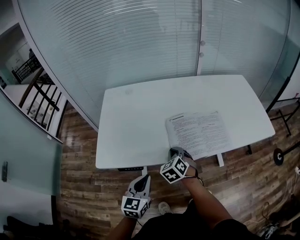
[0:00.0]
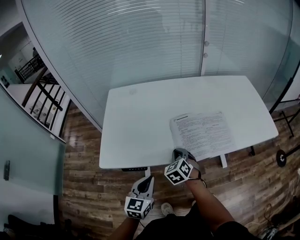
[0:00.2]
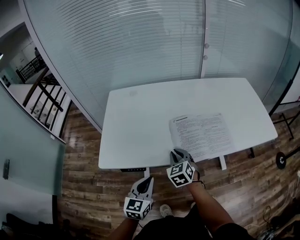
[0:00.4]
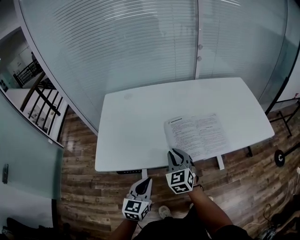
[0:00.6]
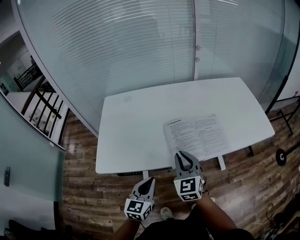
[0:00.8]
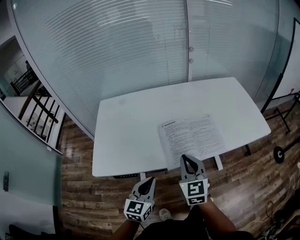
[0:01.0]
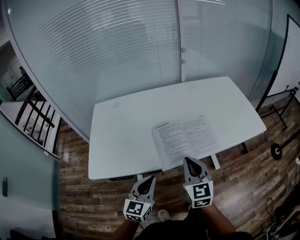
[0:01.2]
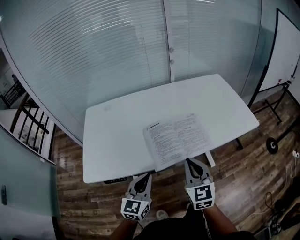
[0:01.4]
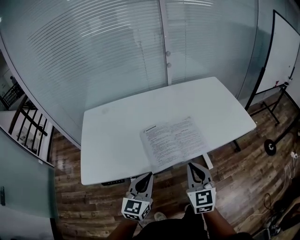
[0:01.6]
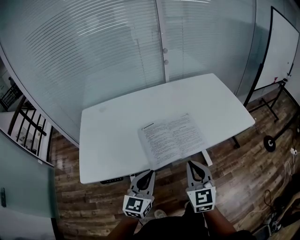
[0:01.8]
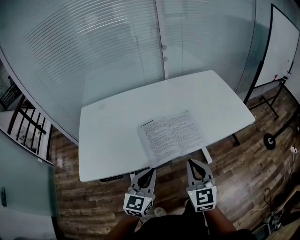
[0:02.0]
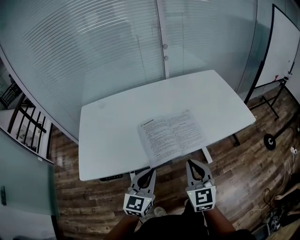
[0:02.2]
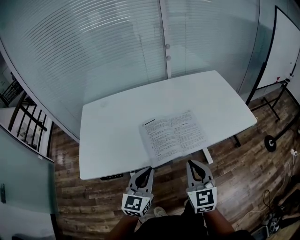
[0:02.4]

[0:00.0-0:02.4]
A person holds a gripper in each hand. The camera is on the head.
0:00.0 to 0:01.2: The right gripper is displaced upward, to the right and backward by some 20 cm, and angles its fingers upward, by some 30 degrees. The left gripper moves to the right, some 10 cm.
0:01.2 to 0:02.4: The left gripper changes place by about 5 cm, while the right gripper goes roughly 5 cm to the right.

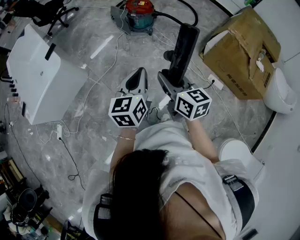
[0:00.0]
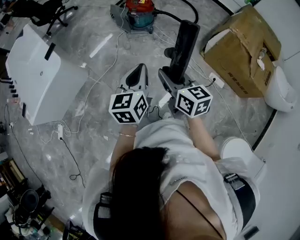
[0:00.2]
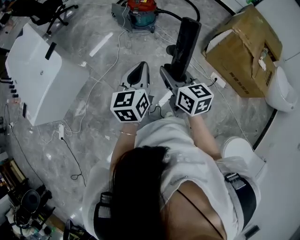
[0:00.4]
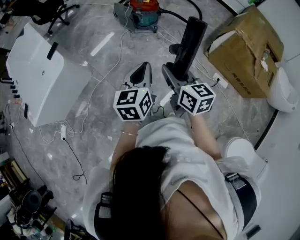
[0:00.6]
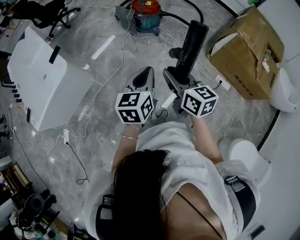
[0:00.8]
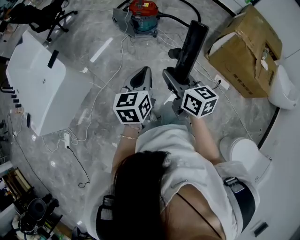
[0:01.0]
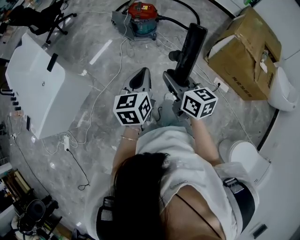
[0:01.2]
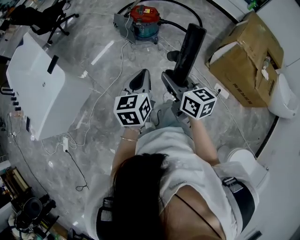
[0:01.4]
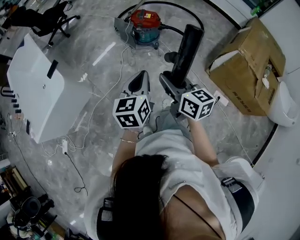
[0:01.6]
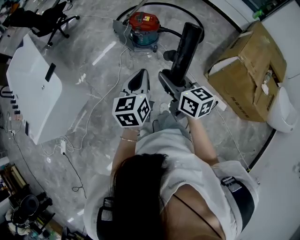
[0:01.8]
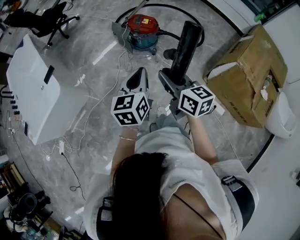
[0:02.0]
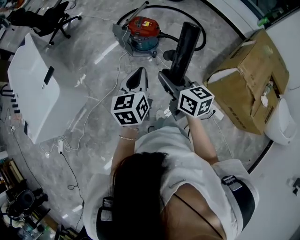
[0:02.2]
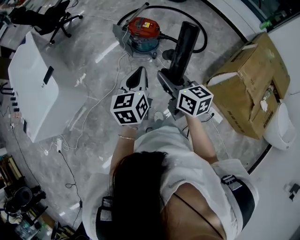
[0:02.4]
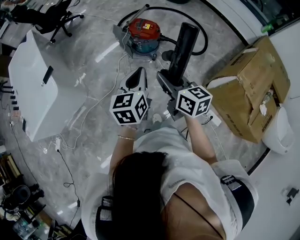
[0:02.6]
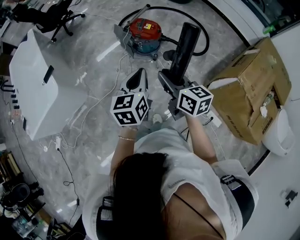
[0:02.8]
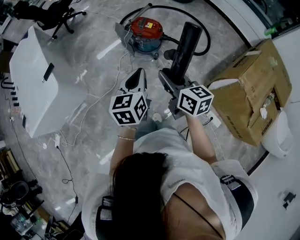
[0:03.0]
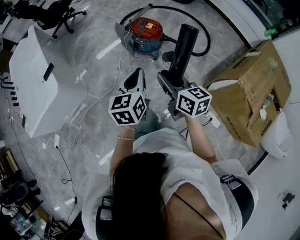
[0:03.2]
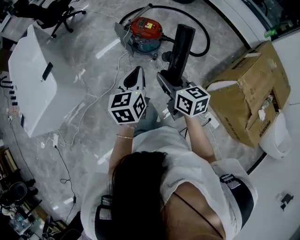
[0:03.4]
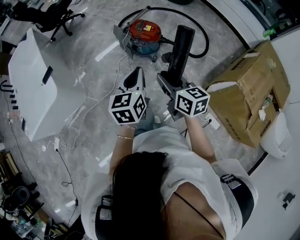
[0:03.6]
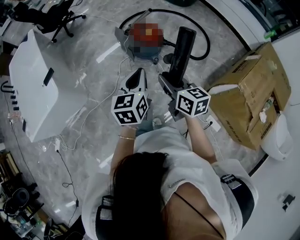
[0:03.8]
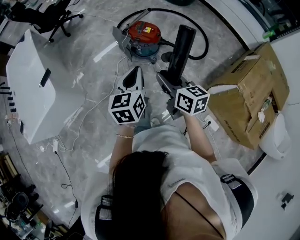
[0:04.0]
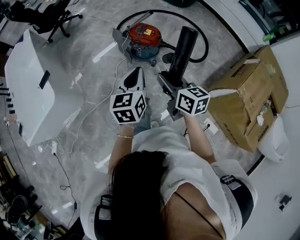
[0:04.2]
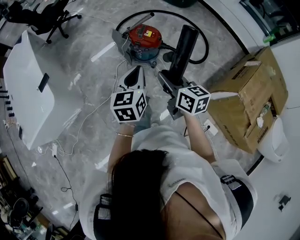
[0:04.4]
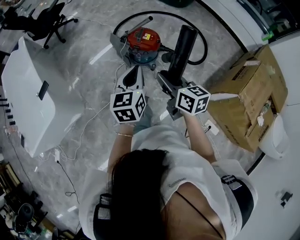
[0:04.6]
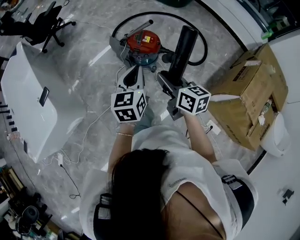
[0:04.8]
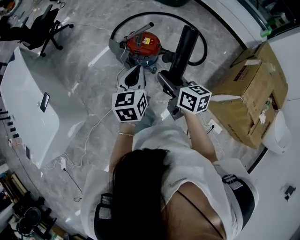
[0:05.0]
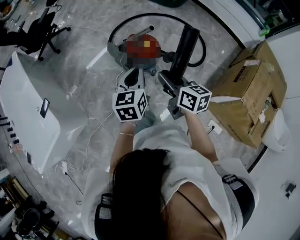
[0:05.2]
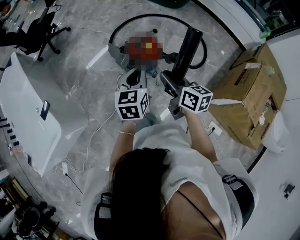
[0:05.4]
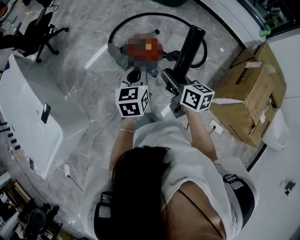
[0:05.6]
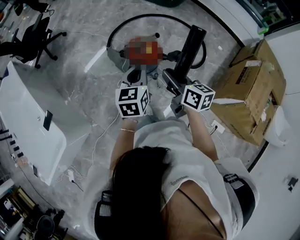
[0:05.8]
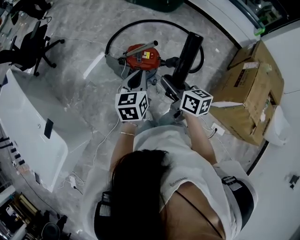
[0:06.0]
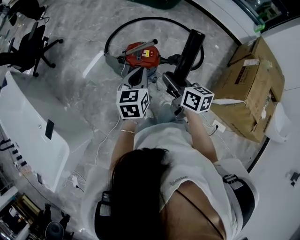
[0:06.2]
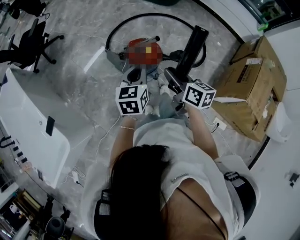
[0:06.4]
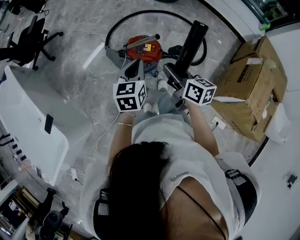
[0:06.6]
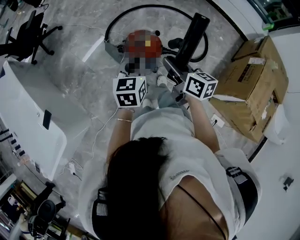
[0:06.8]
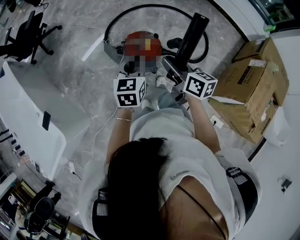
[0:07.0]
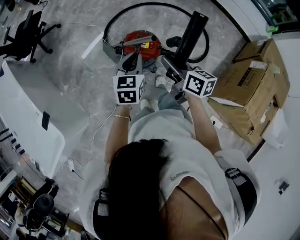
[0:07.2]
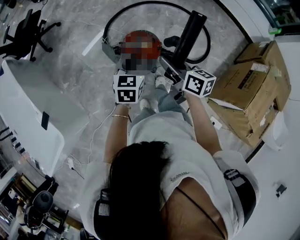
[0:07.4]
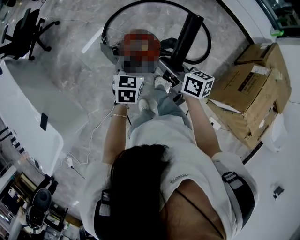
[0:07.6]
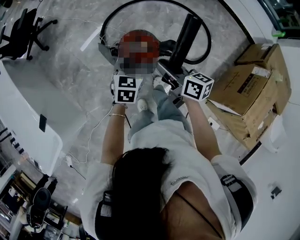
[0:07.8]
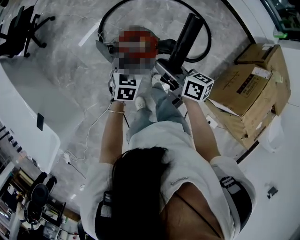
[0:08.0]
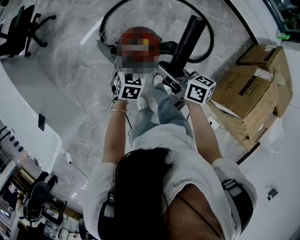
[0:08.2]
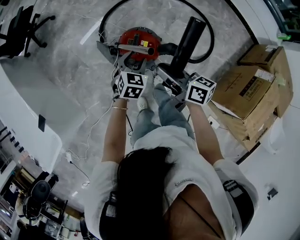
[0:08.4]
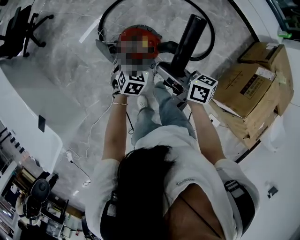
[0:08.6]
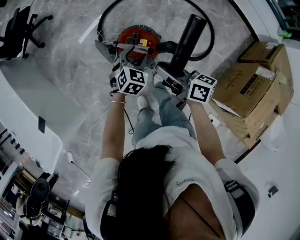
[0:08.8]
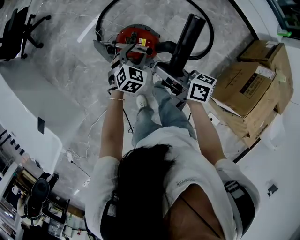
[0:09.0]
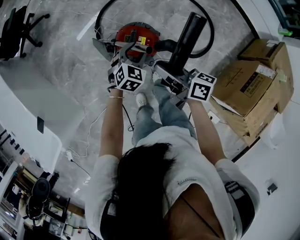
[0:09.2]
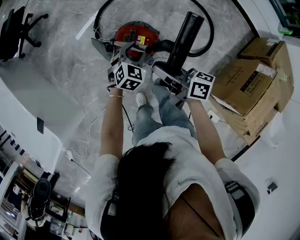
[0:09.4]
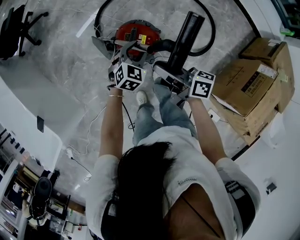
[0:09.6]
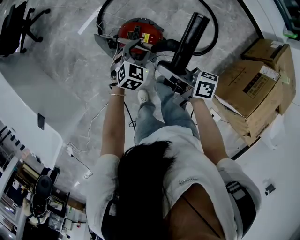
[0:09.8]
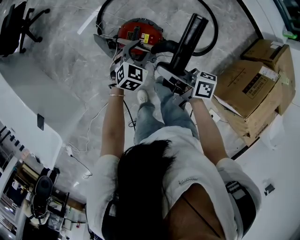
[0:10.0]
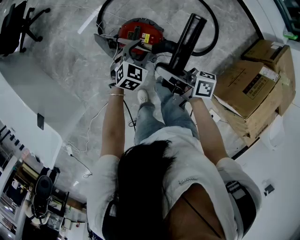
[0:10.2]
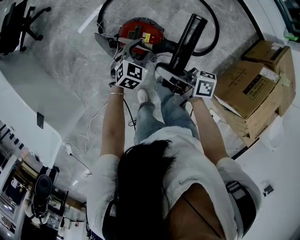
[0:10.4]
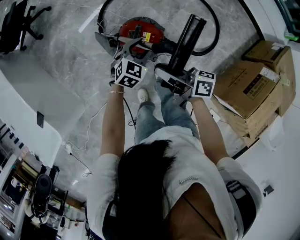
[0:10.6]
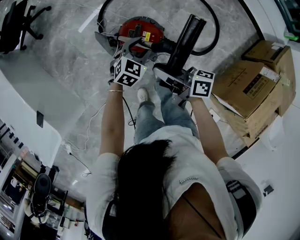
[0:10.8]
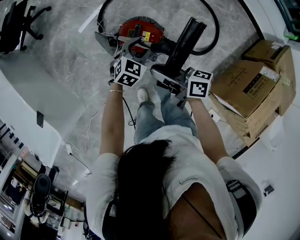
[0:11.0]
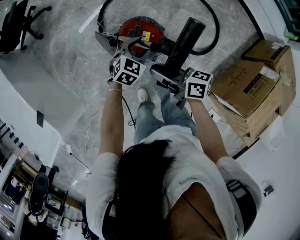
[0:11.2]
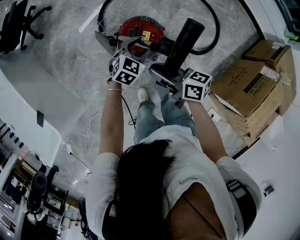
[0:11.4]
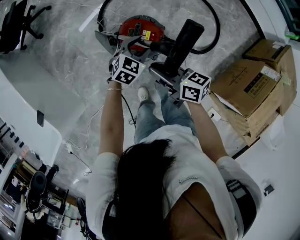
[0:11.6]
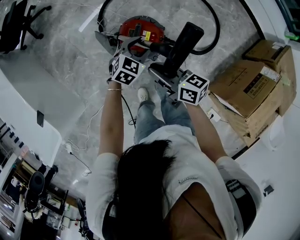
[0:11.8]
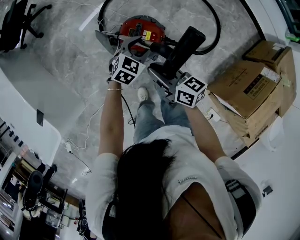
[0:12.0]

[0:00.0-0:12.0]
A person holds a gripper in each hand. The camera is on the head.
0:00.0 to 0:01.6: The two grippers go roughly 20 cm forward.
0:01.6 to 0:03.0: Both grippers travel together forward and to the right, roughly 20 cm.
0:03.0 to 0:04.4: The two grippers go approximately 10 cm forward.
0:04.4 to 0:06.0: The two grippers go about 20 cm forward.
0:06.0 to 0:07.6: The right gripper shifts approximately 15 cm forward; the left gripper is displaced forward, downward and to the right by approximately 15 cm, and opens.
0:07.6 to 0:09.0: The left gripper travels downward and forward by roughly 15 cm, and swivels roughly 30 degrees.
0:09.0 to 0:10.4: The grippers move only a little.
0:10.4 to 0:12.0: The right gripper swivels approximately 30 degrees.

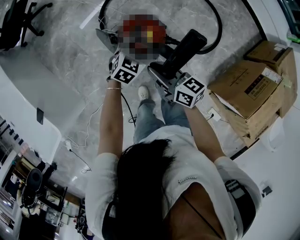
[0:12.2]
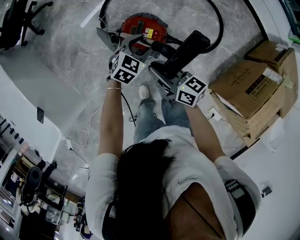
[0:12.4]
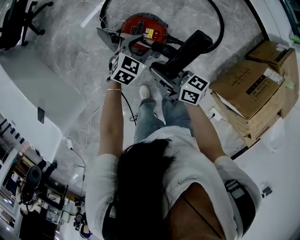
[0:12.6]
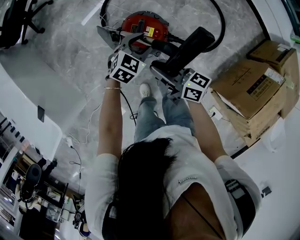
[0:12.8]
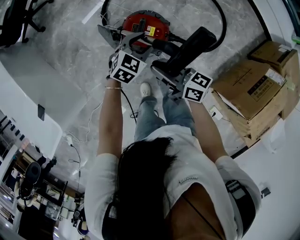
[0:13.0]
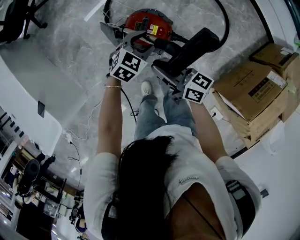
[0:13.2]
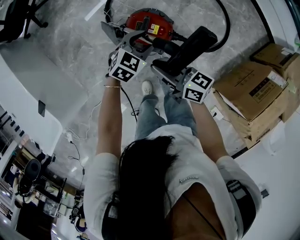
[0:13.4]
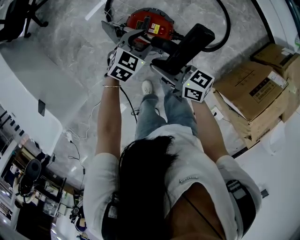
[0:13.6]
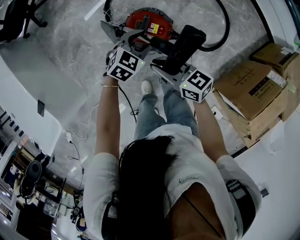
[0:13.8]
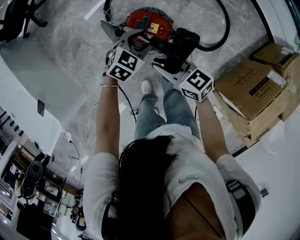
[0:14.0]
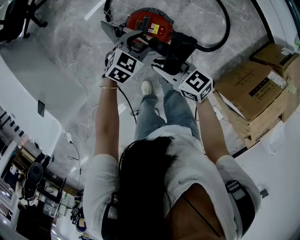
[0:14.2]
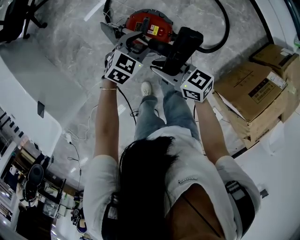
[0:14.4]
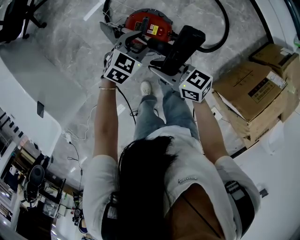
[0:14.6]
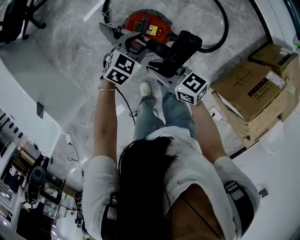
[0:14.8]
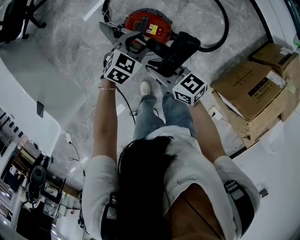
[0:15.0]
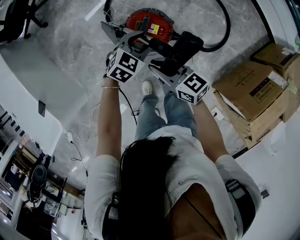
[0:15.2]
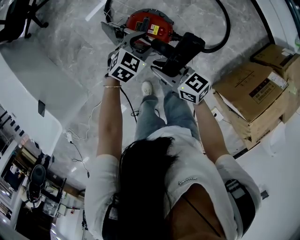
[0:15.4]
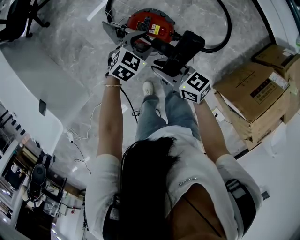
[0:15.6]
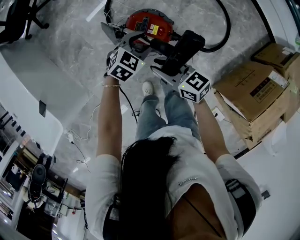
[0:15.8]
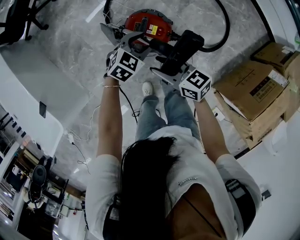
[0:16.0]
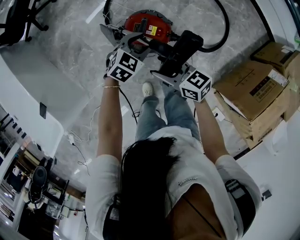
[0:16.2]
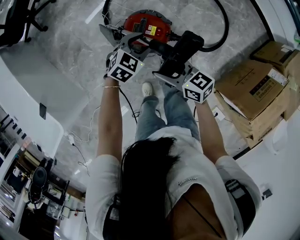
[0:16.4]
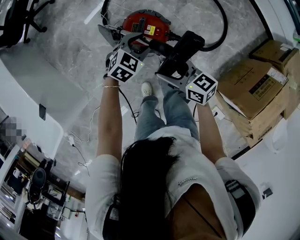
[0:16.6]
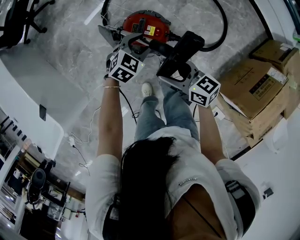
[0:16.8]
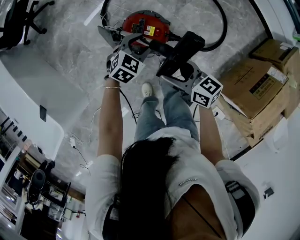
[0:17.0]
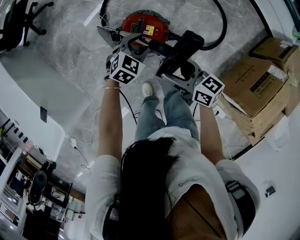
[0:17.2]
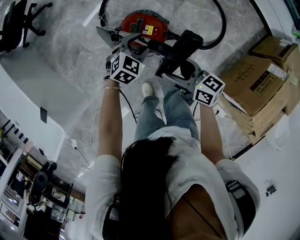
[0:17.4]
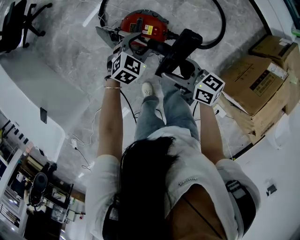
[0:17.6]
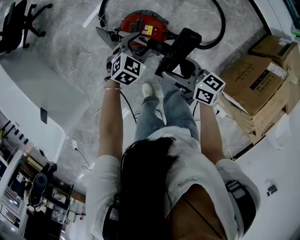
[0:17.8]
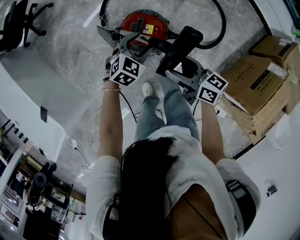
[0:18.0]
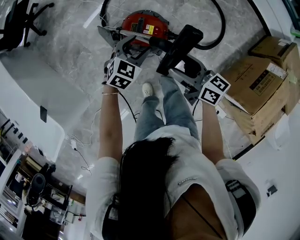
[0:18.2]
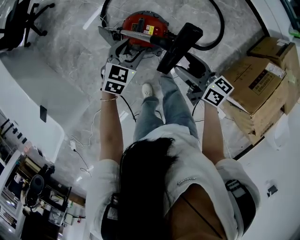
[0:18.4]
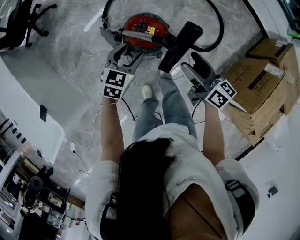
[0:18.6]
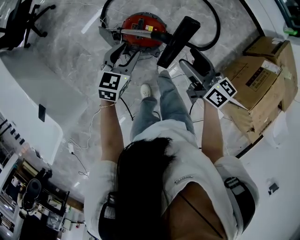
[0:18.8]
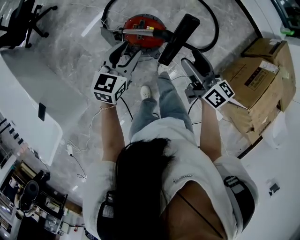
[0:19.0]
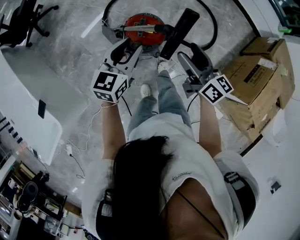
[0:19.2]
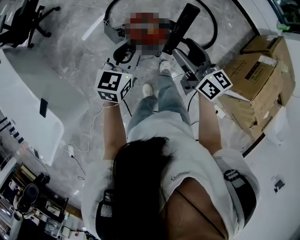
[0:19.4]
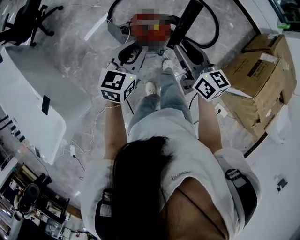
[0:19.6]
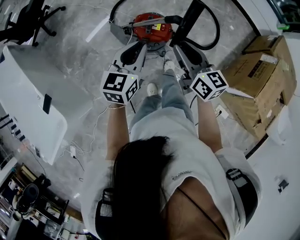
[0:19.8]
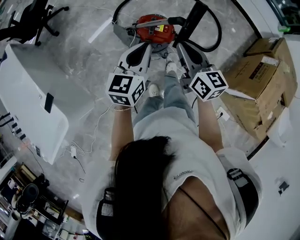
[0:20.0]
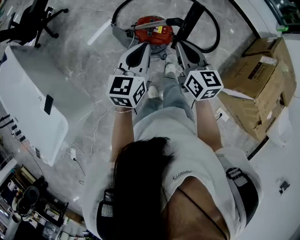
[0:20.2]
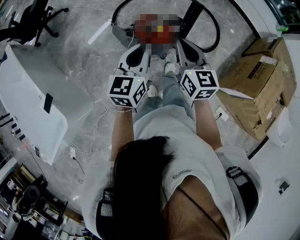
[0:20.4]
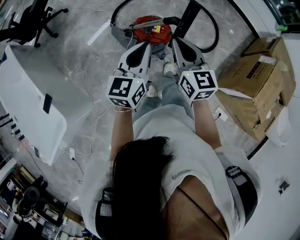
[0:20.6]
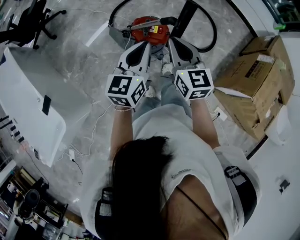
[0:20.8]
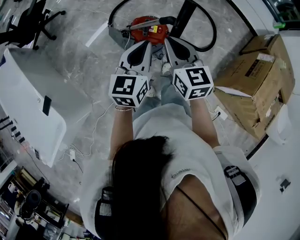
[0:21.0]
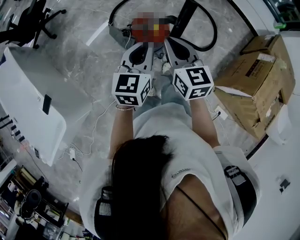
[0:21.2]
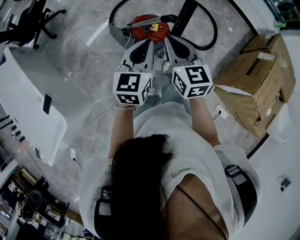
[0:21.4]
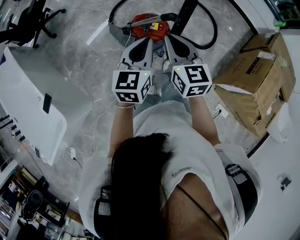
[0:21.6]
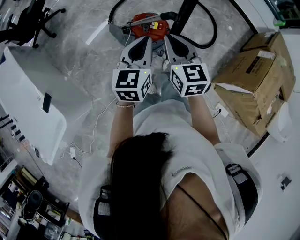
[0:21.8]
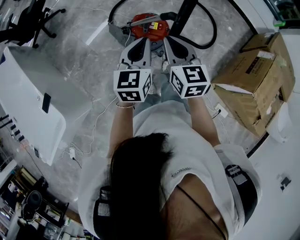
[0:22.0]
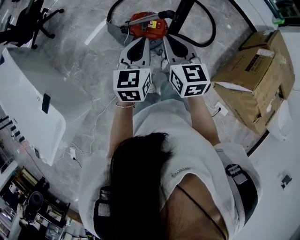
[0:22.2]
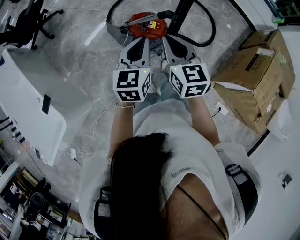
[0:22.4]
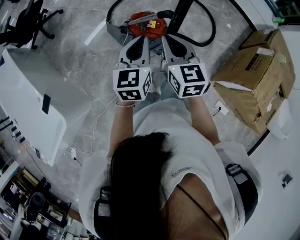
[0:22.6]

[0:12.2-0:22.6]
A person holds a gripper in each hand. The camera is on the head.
0:12.2 to 0:13.6: The grippers make only small movements.
0:15.2 to 0:16.6: The right gripper opens its fingers.
0:16.6 to 0:18.2: The right gripper moves some 5 cm.
0:18.2 to 0:19.6: The right gripper goes about 15 cm upward and backward, changes its angle by about 20 degrees, and closes its fingers. The left gripper goes roughly 20 cm upward and backward, rotates approximately 30 degrees, and closes.
0:19.6 to 0:21.2: The left gripper ends up about 5 cm from where it was, and closes up, while the right gripper ends up about 5 cm from where it was, and closes.
0:21.2 to 0:22.6: The grippers stay close to where they were, moving slightly.
